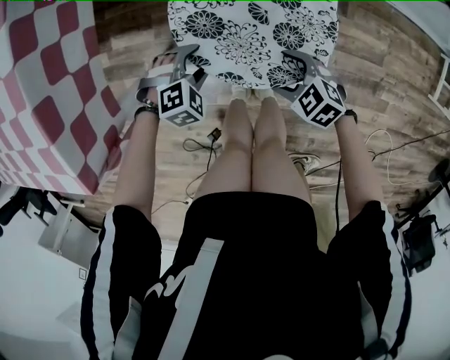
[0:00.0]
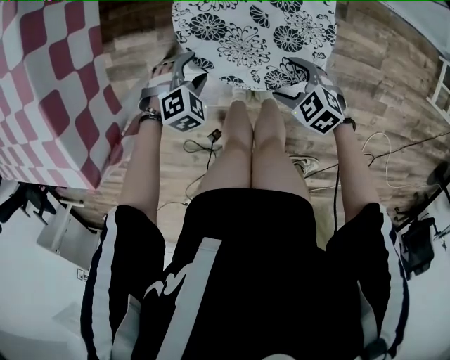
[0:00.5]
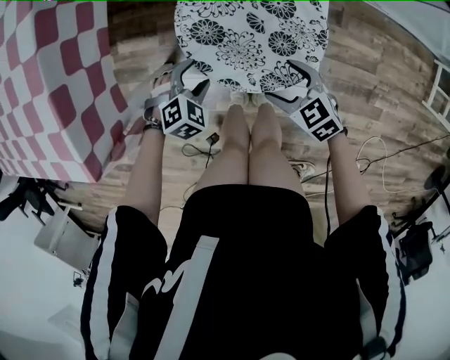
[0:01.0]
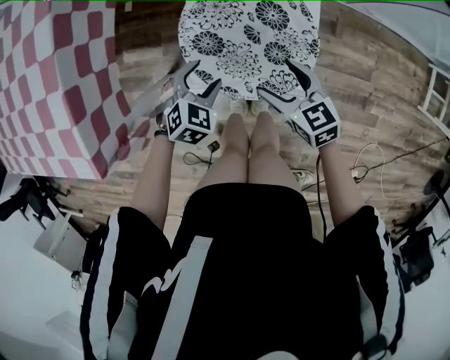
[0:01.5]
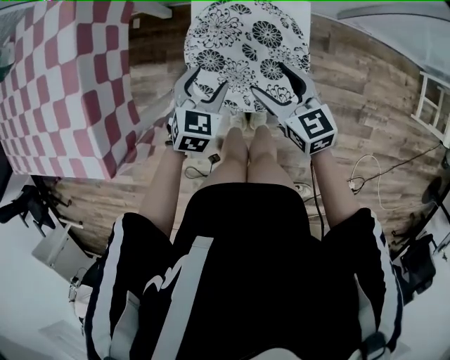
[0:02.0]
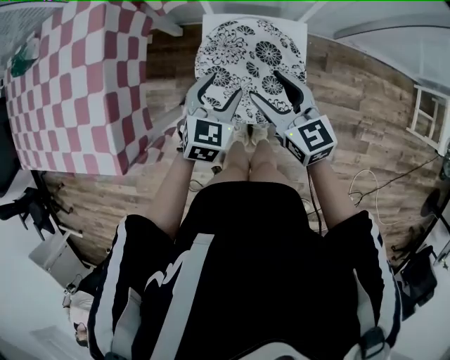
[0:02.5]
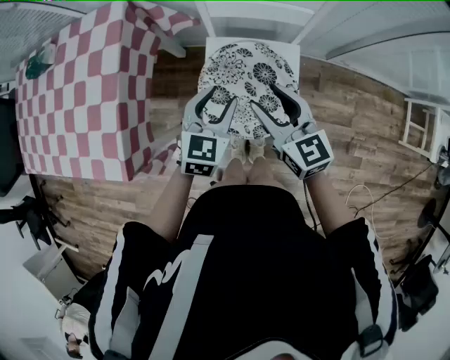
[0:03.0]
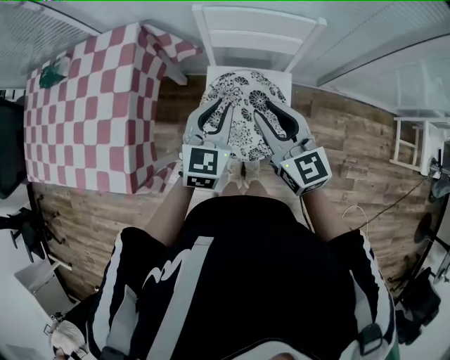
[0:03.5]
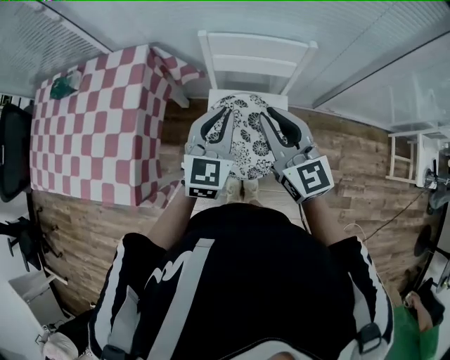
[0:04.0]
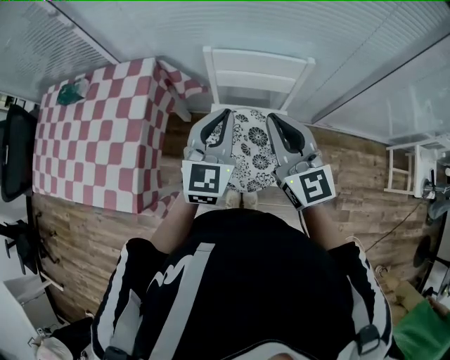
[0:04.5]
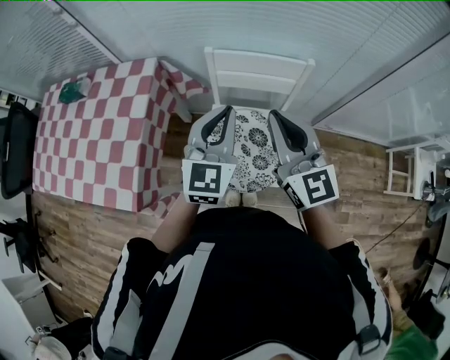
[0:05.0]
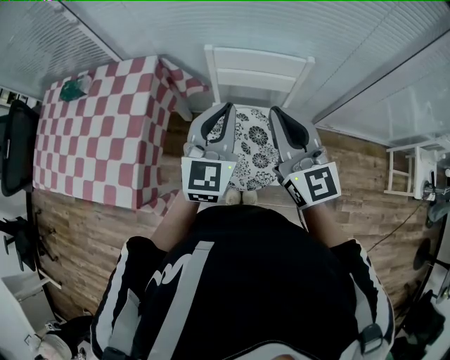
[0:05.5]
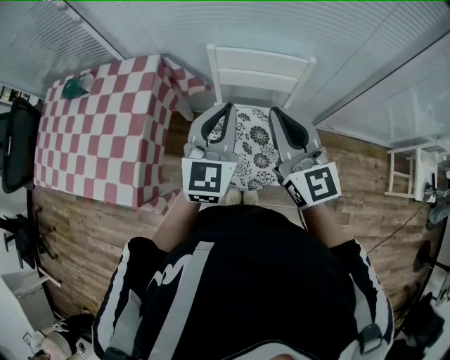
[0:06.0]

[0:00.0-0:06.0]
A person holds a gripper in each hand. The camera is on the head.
0:00.0 to 0:02.0: The two grippers go some 20 cm upward. The left gripper changes its angle by some 50 degrees. Meanwhile the right gripper swivels some 50 degrees.
0:02.0 to 0:04.0: The two grippers go roughly 30 cm upward. The left gripper angles its fingers upward, by about 30 degrees, and closes up. Meanwhile the right gripper turns by approximately 30 degrees, and closes.
0:04.0 to 0:06.0: Both grippers move upward, roughly 5 cm.

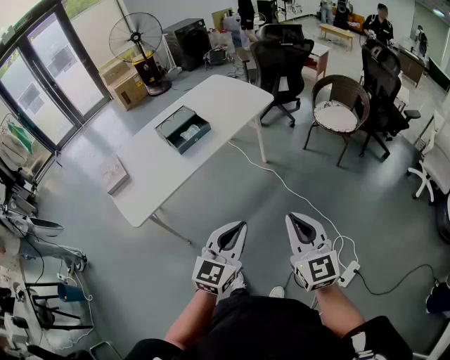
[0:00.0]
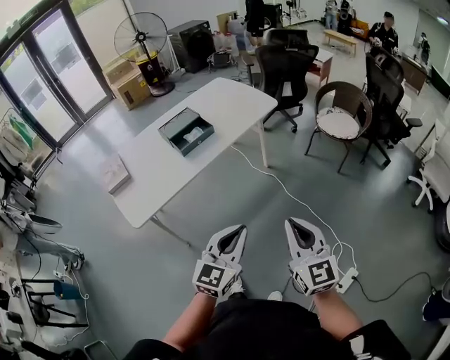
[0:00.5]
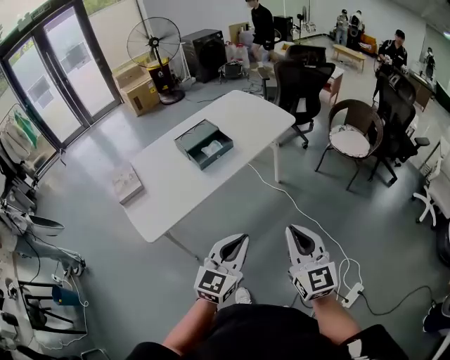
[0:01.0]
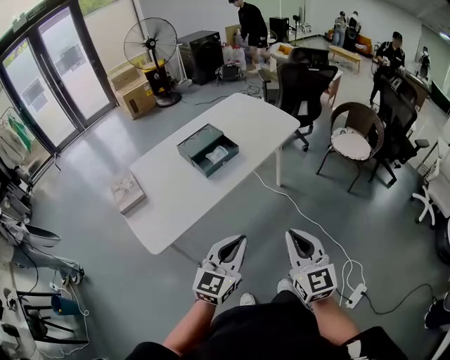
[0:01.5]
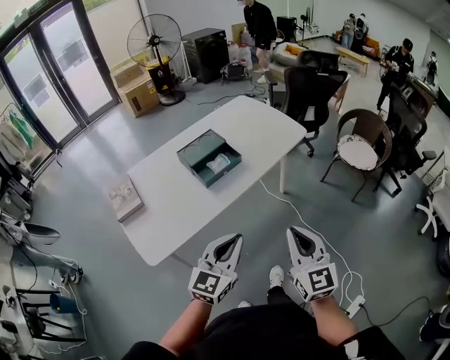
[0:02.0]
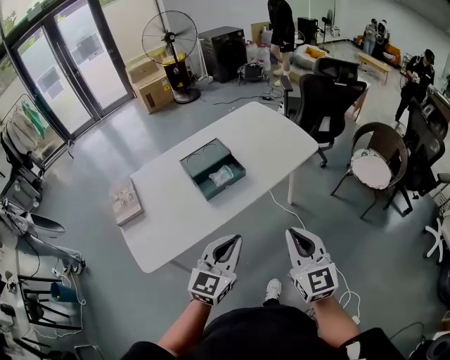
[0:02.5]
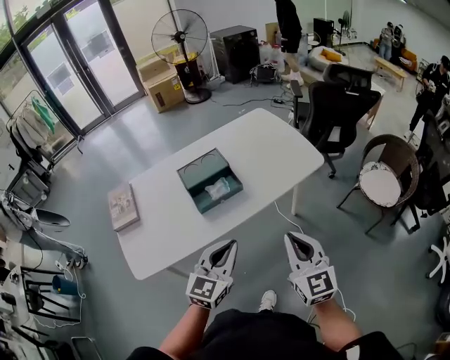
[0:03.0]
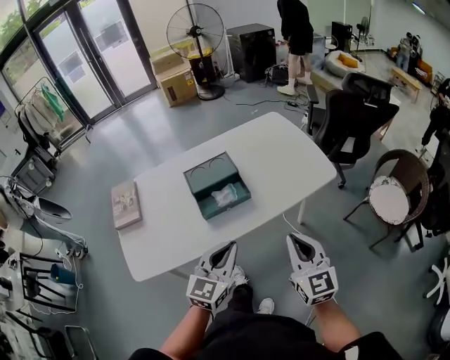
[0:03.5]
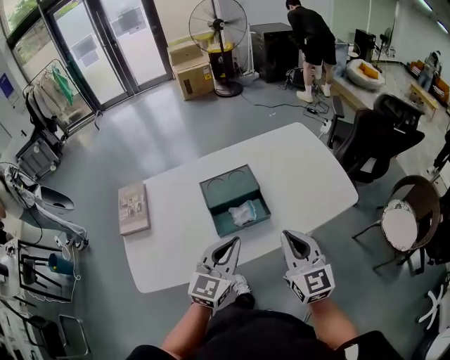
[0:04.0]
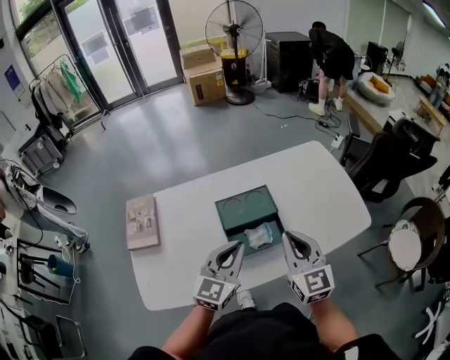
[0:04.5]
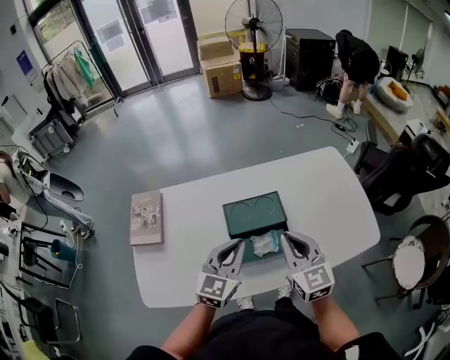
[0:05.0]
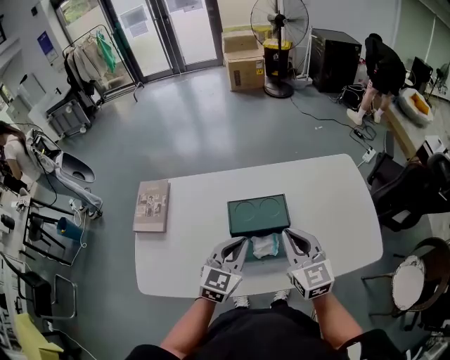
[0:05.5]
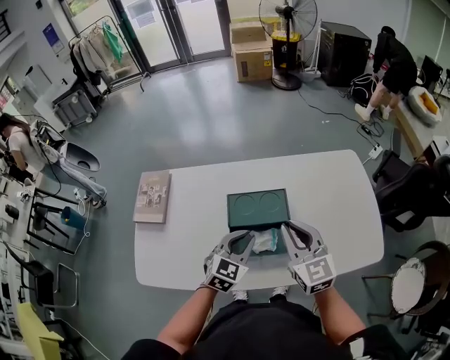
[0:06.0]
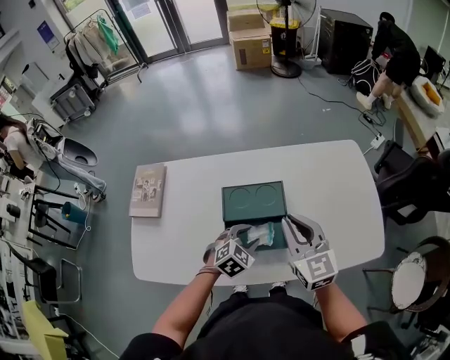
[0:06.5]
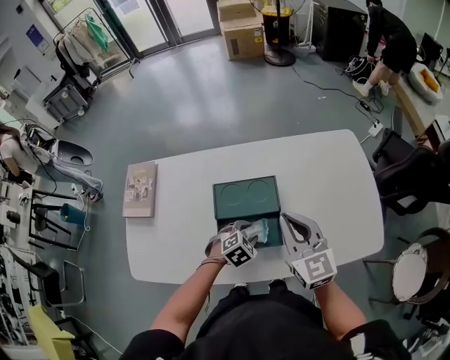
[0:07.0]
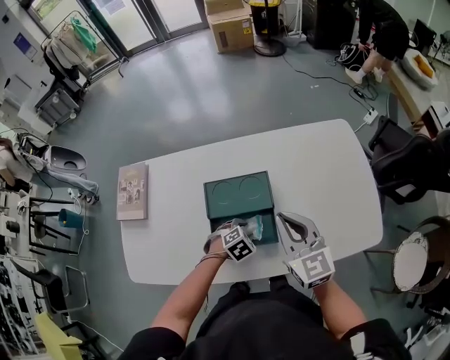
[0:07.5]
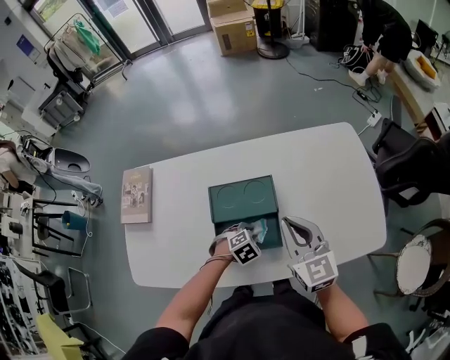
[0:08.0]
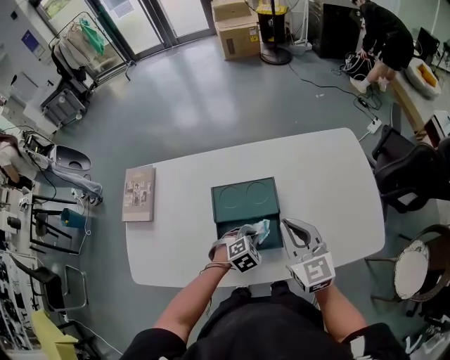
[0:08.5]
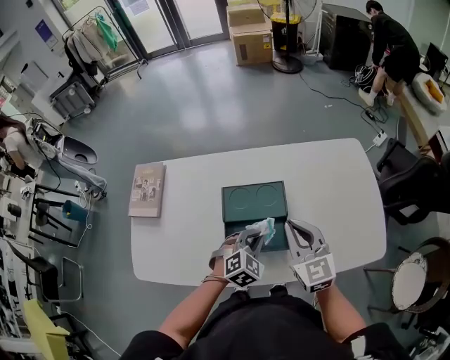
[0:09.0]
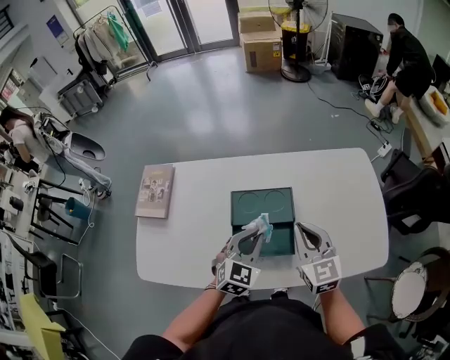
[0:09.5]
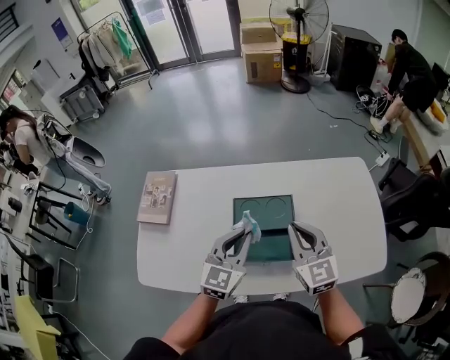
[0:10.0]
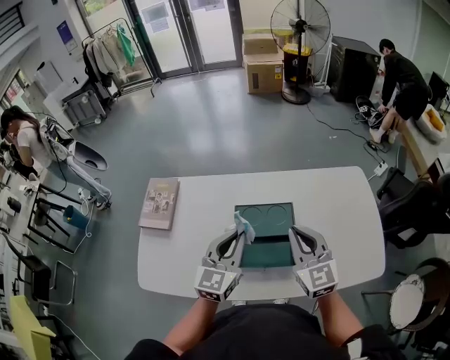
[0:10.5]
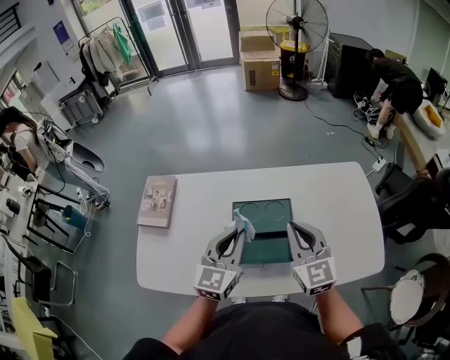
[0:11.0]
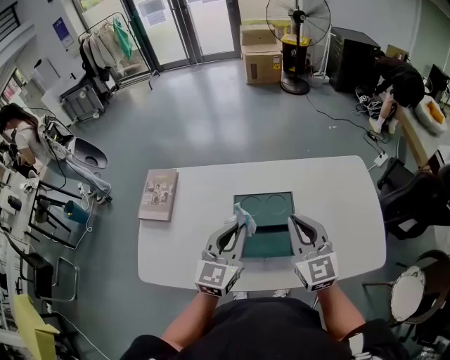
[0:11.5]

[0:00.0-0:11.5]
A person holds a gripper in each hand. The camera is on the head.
0:00.0 to 0:02.0: The left gripper shifts roughly 25 cm to the left and forward, while the right gripper moves forward and to the left, roughly 25 cm.
0:02.0 to 0:04.0: Both grippers travel together forward, approximately 35 cm. The right gripper changes its angle by roughly 20 degrees. Meanwhile the left gripper rotates approximately 20 degrees.
0:04.0 to 0:06.0: The left gripper moves forward and downward, approximately 20 cm, and changes its angle by about 20 degrees. Meanwhile the right gripper travels forward by roughly 20 cm, and rotates approximately 20 degrees.
0:06.0 to 0:07.5: The left gripper heads downward, covering approximately 20 cm, angles its fingers downward, by some 40 degrees, and opens, while the right gripper moves roughly 5 cm.
0:07.5 to 0:09.5: The left gripper shifts roughly 20 cm upward, points its fingers roughly 40 degrees further upward, and closes up.
0:09.5 to 0:11.5: The left gripper travels upward and to the left by some 10 cm, and changes its angle by roughly 30 degrees, while the right gripper goes roughly 5 cm upward.

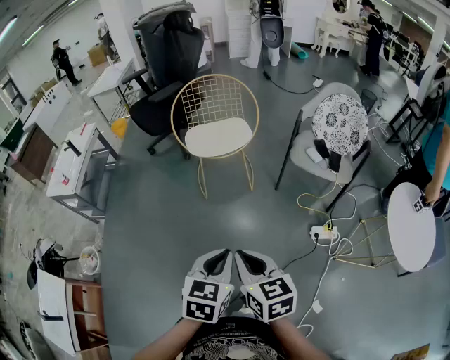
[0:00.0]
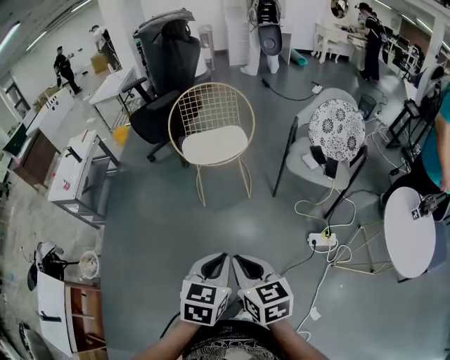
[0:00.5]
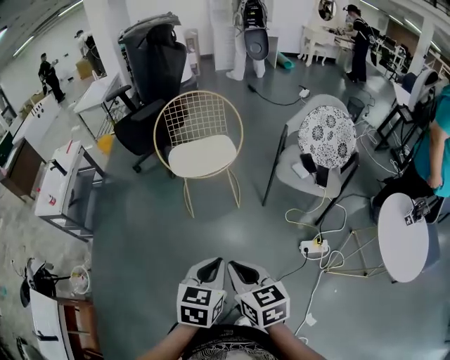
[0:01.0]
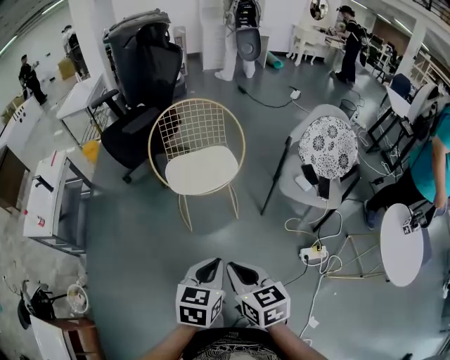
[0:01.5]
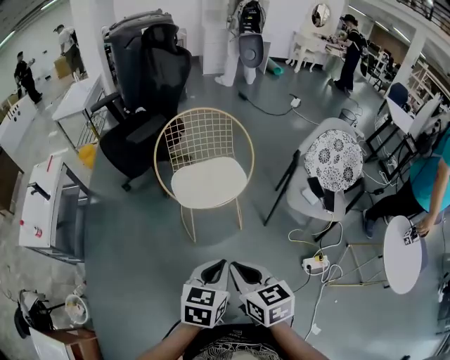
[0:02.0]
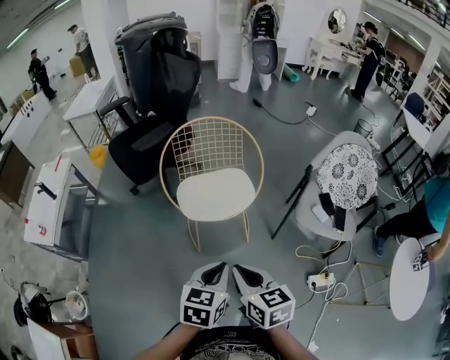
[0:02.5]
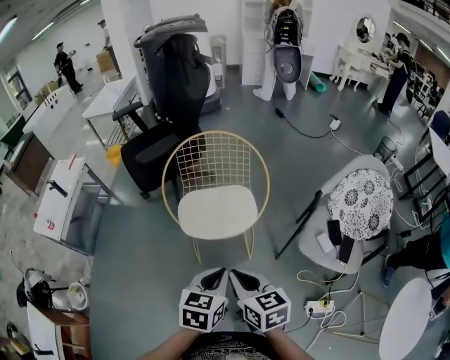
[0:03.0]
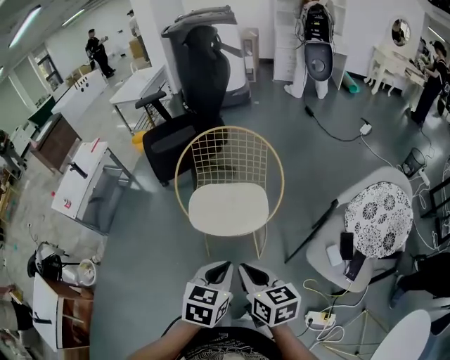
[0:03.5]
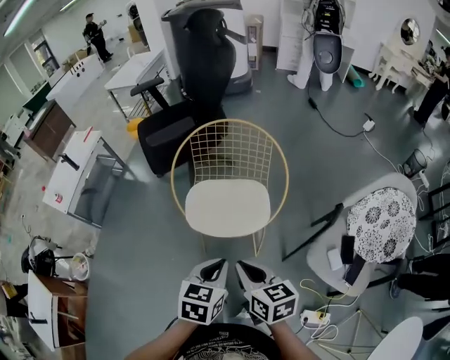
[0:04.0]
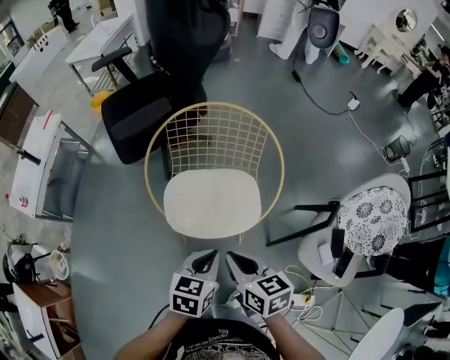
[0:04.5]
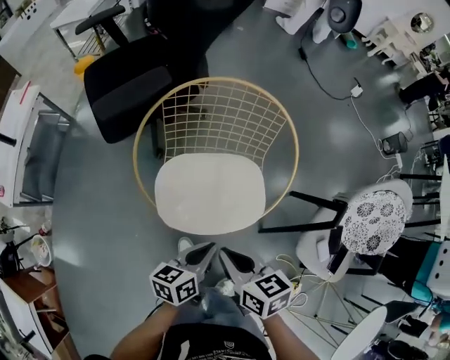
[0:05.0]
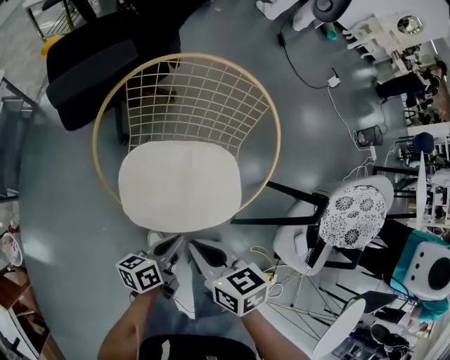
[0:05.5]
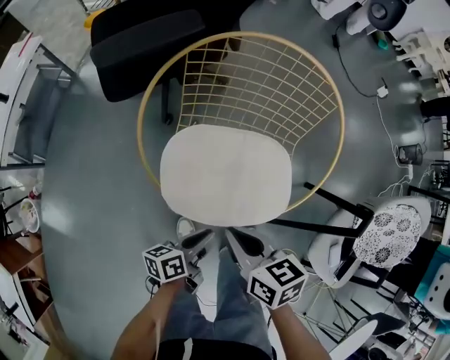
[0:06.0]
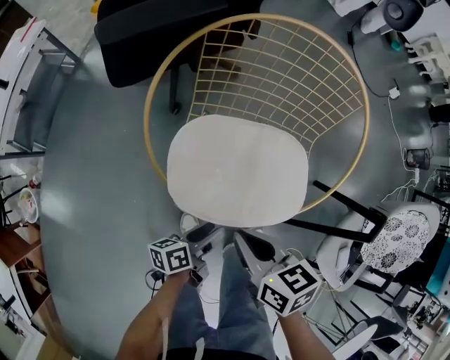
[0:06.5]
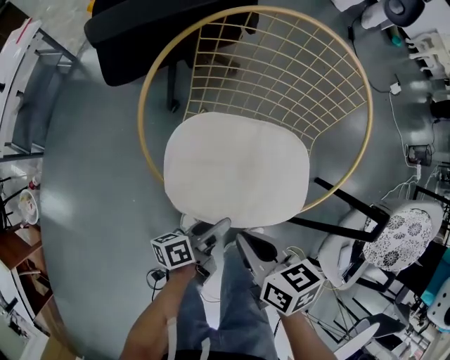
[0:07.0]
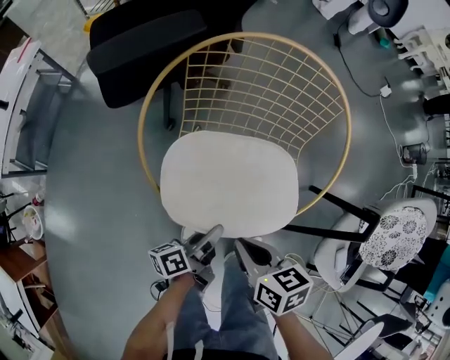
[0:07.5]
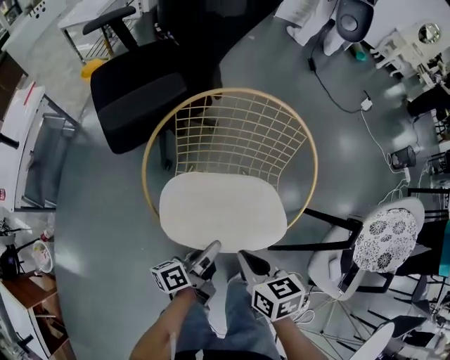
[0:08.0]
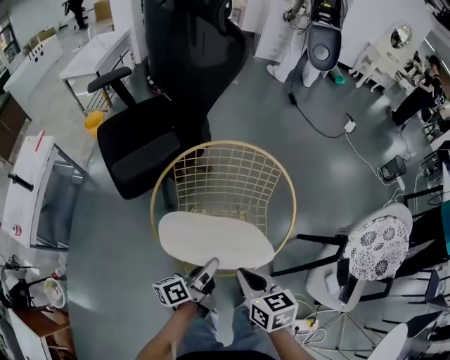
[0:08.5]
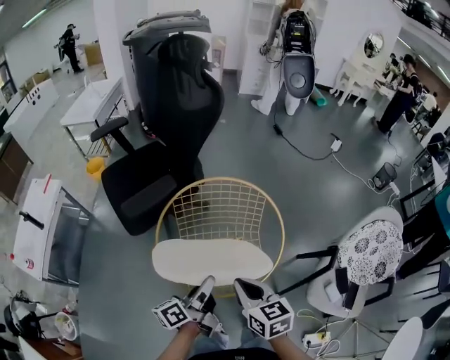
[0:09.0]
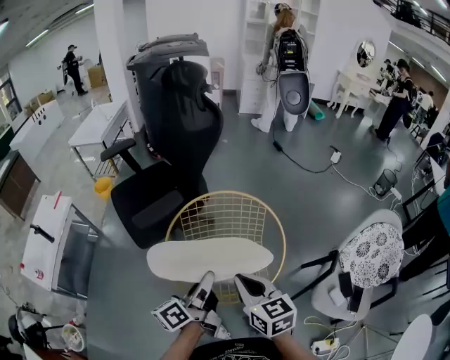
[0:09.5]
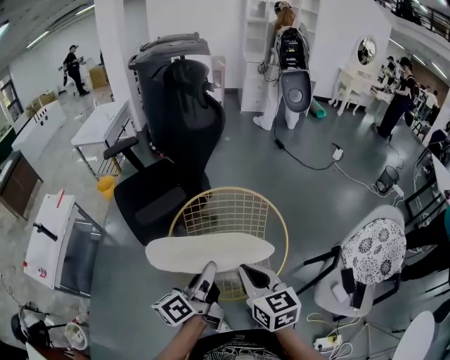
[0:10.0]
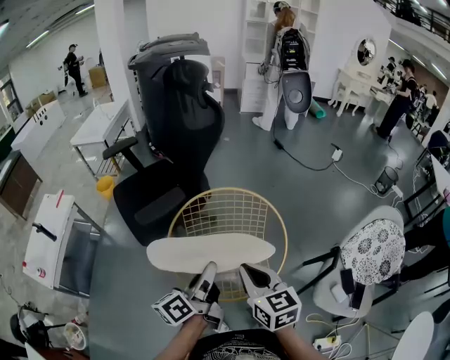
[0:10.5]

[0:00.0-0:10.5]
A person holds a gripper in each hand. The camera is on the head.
0:00.0 to 0:02.0: The grippers both shift forward by some 25 cm.
0:02.0 to 0:04.0: Both grippers travel together forward and to the right, about 25 cm. The right gripper swivels some 20 degrees; the left gripper swivels roughly 20 degrees.
0:04.0 to 0:06.5: The left gripper travels downward by roughly 35 cm, twists roughly 60 degrees counterclockwise, seen from behind, and opens its fingers, while the right gripper travels downward, forward and to the left by about 25 cm.
0:06.5 to 0:08.5: The left gripper is displaced upward and forward by some 25 cm, and closes. Meanwhile the right gripper goes some 10 cm upward.
0:08.5 to 0:10.5: Both grippers move upward, some 15 cm. The right gripper turns by some 20 degrees.
